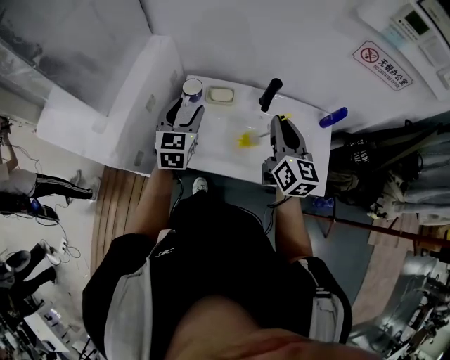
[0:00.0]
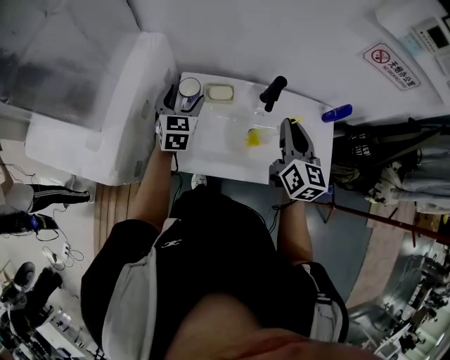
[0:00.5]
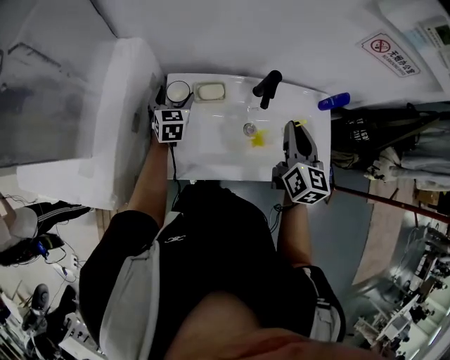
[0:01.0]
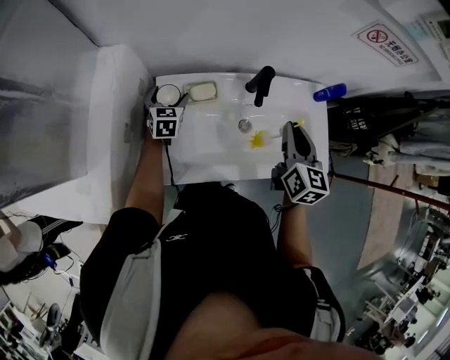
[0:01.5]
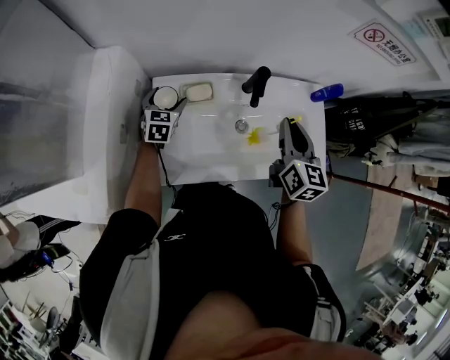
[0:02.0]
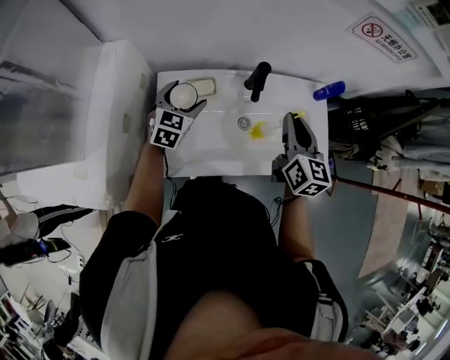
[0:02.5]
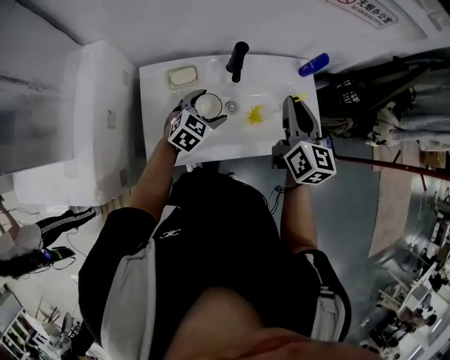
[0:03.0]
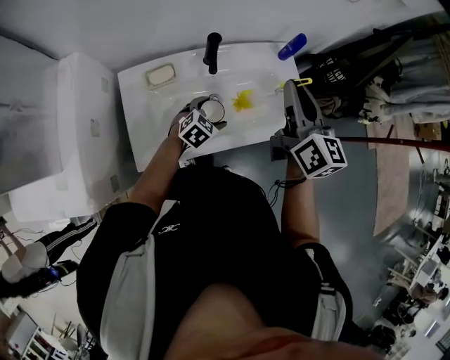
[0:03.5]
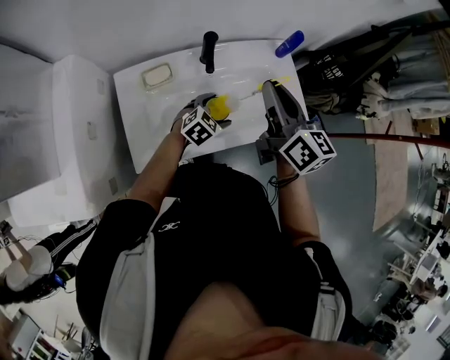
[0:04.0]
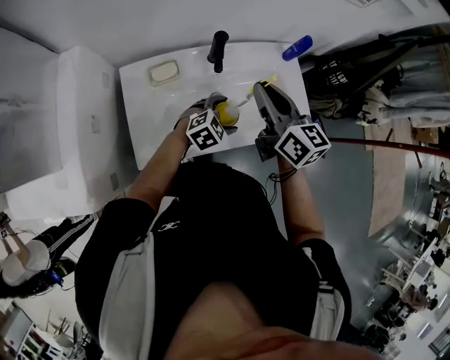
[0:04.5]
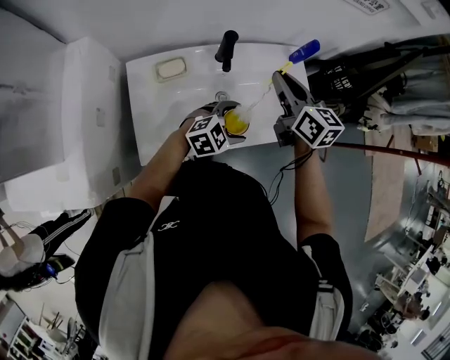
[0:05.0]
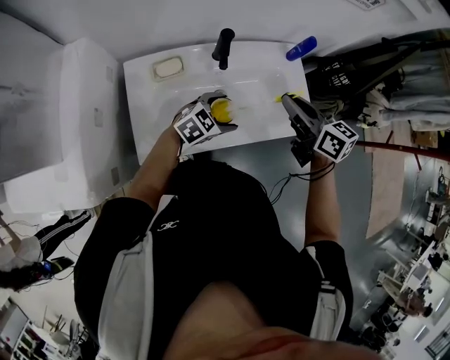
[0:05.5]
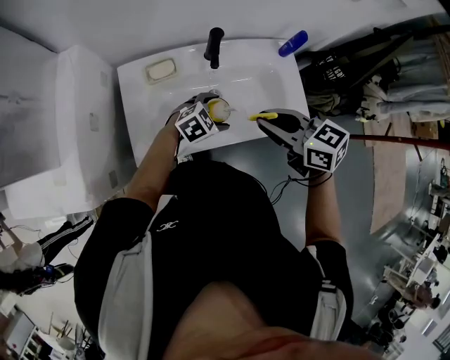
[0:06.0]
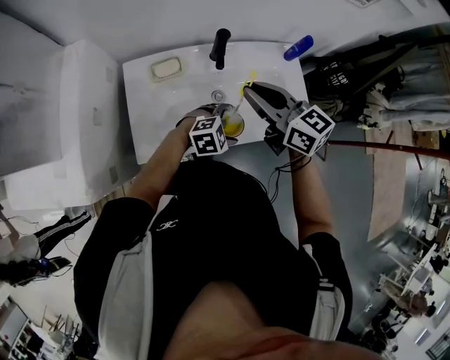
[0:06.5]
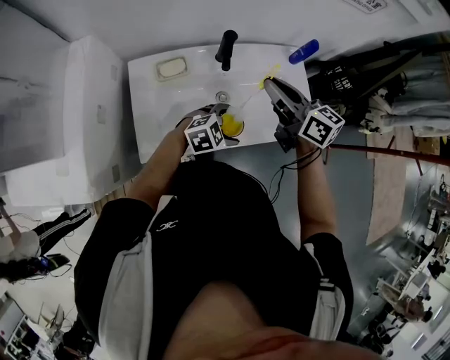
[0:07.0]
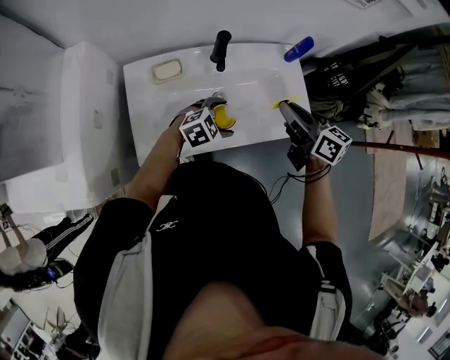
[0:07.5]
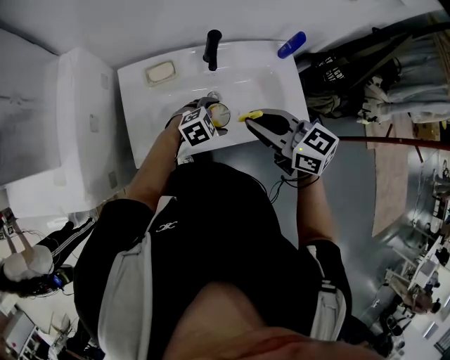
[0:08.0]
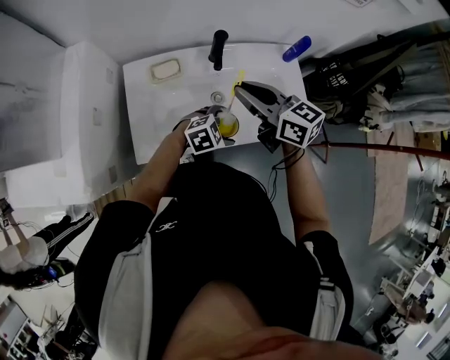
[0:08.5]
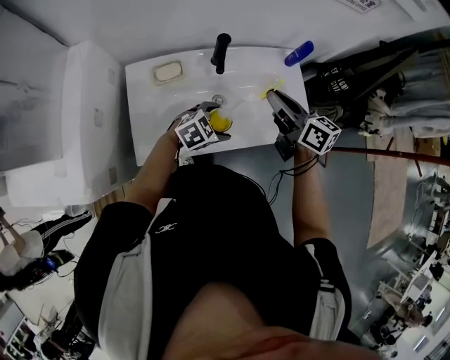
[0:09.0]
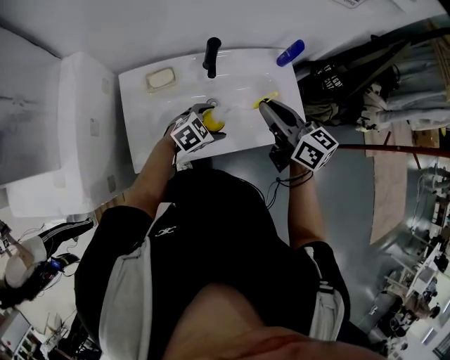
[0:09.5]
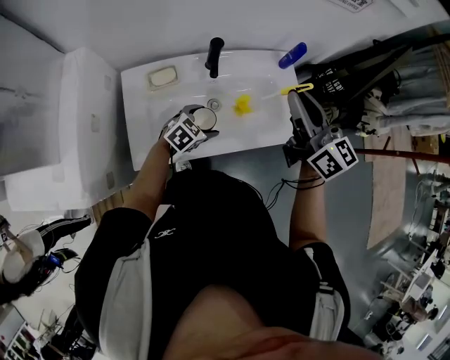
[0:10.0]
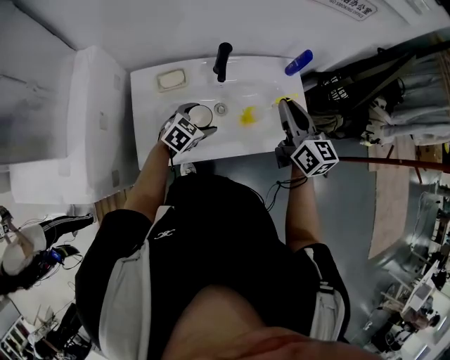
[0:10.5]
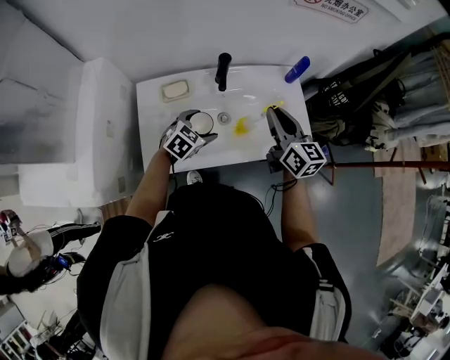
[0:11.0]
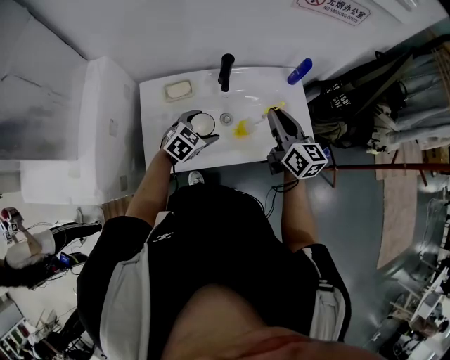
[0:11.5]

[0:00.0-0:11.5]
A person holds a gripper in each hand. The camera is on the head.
0:00.0 to 0:02.0: The right gripper goes some 5 cm downward, and turns by roughly 20 degrees. Meanwhile the left gripper is displaced downward and forward by roughly 25 cm, turns by some 20 degrees, and opens up.
0:02.0 to 0:04.0: The right gripper shifts about 10 cm upward and to the right, and changes its angle by roughly 20 degrees. The left gripper goes approximately 35 cm to the right, and swivels approximately 50 degrees.
0:04.0 to 0:06.0: The right gripper changes place by approximately 10 cm, and turns by about 50 degrees.
0:06.0 to 0:07.5: The right gripper moves about 10 cm, and swivels some 30 degrees.
0:09.5 to 0:11.5: The right gripper goes upward and returns, roughly 10 cm each way. The left gripper heads to the left, covering some 10 cm.

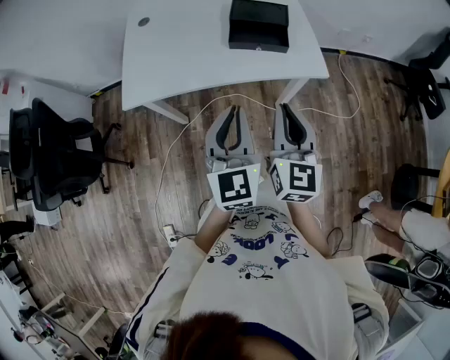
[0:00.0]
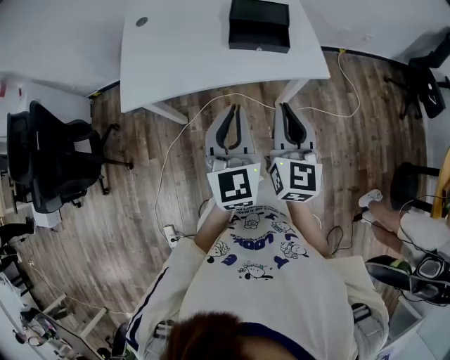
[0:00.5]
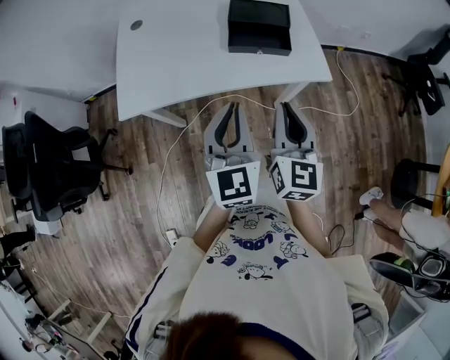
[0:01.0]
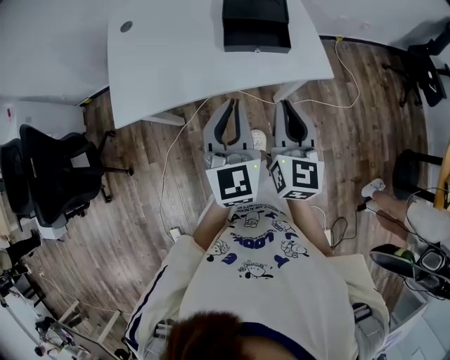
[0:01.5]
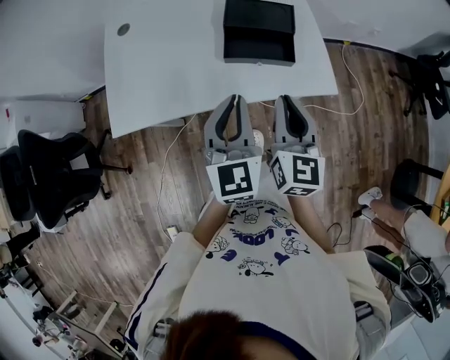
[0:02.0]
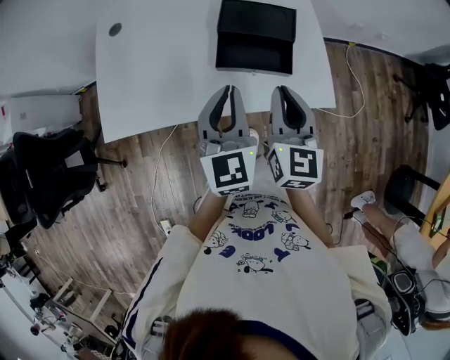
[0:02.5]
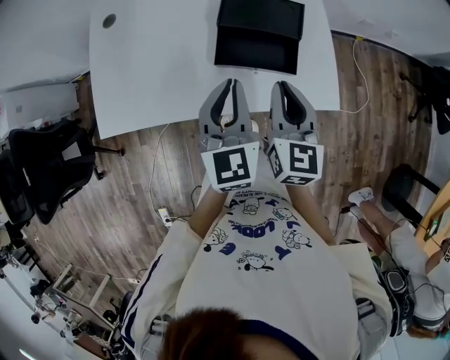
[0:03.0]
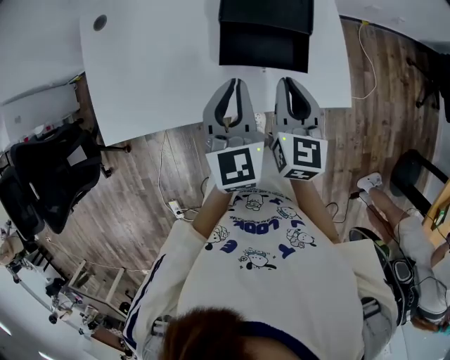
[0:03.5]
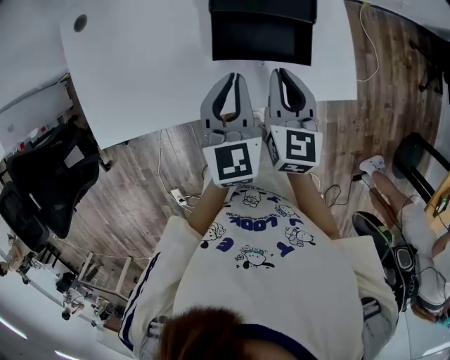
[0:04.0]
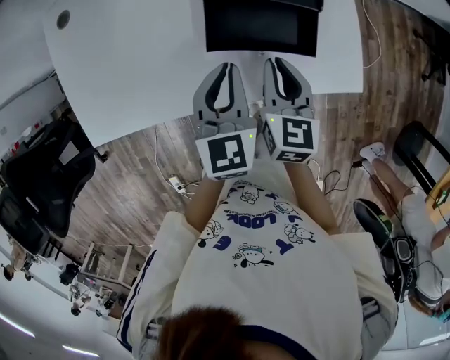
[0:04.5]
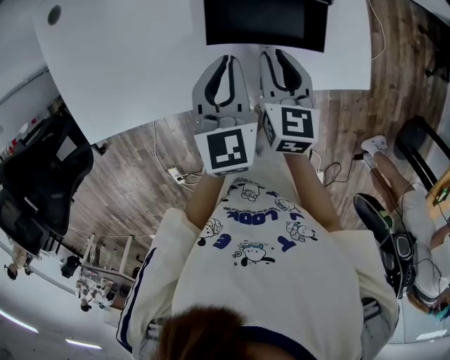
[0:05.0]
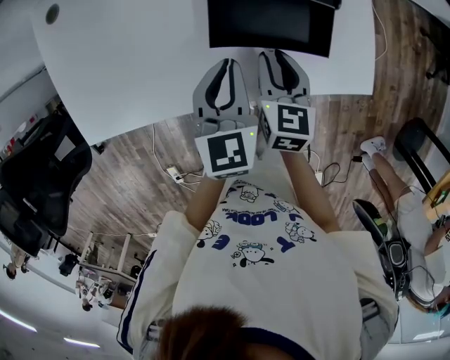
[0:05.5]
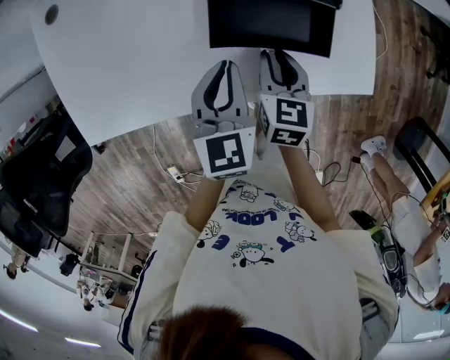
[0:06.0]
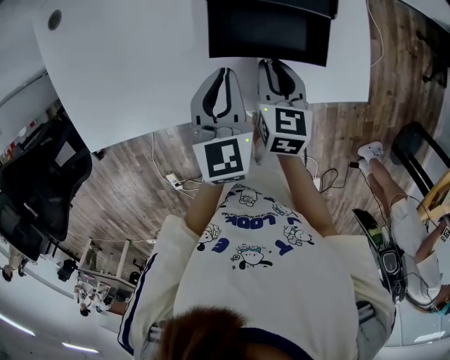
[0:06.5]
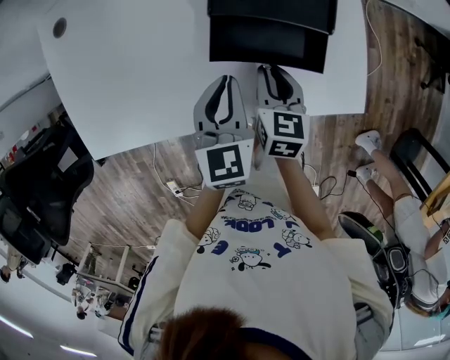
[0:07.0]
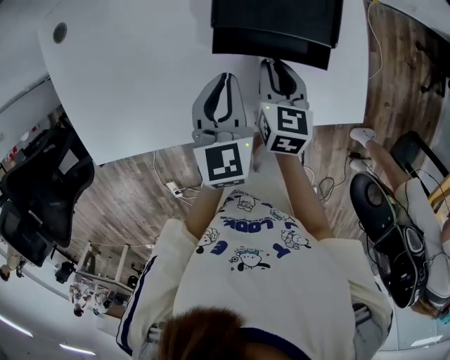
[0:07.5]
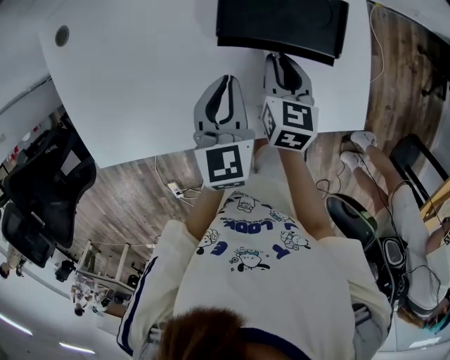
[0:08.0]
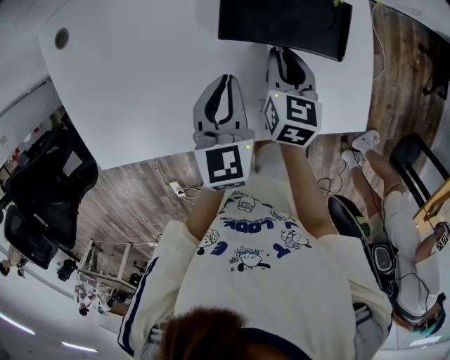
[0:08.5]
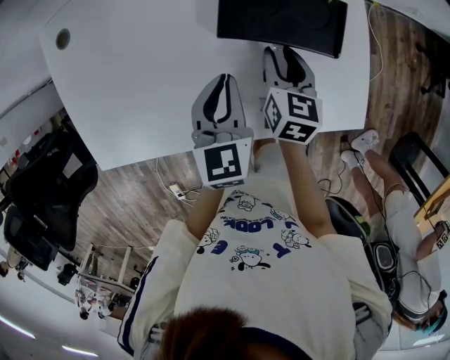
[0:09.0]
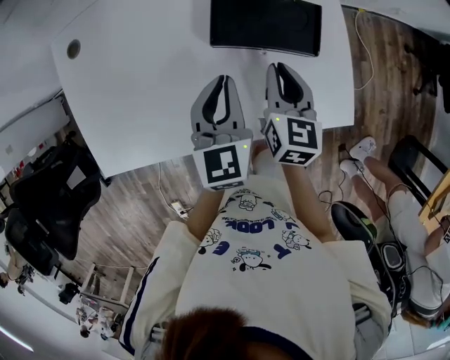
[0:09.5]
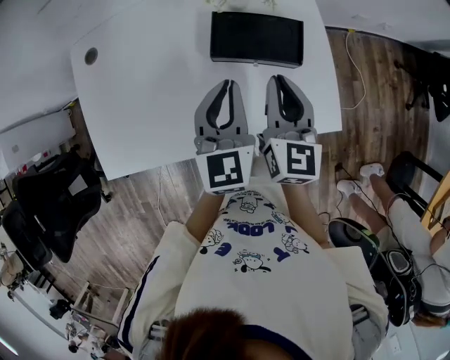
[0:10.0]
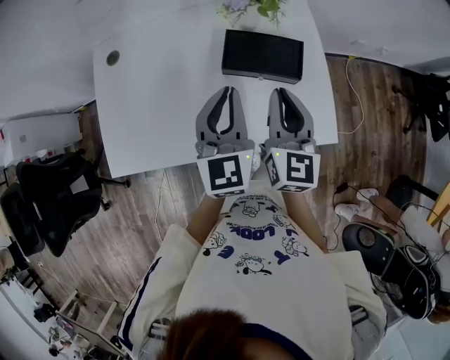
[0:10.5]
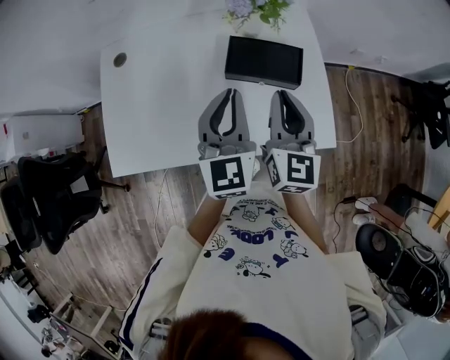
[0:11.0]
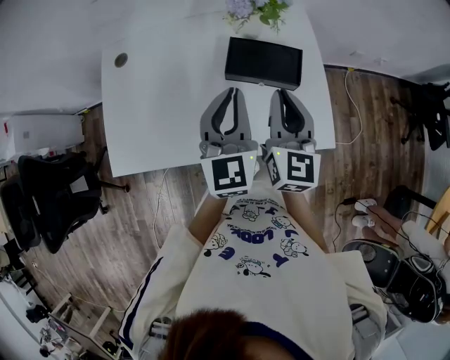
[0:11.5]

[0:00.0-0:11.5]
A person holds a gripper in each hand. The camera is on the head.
0:00.0 to 0:02.0: The grippers both shift forward by roughly 15 cm.
0:02.0 to 0:04.0: Both grippers move forward and downward, approximately 20 cm.
0:04.0 to 0:06.0: The left gripper heads downward, covering roughly 5 cm; the right gripper heads downward, covering some 10 cm.
0:06.0 to 0:07.5: The grippers both shift forward by some 5 cm.
0:07.5 to 0:09.5: The left gripper shifts by some 5 cm. Meanwhile the right gripper moves upward, some 10 cm.
0:09.5 to 0:11.5: Both grippers move upward, approximately 15 cm. The left gripper rotates about 20 degrees. Meanwhile the right gripper turns by roughly 20 degrees.

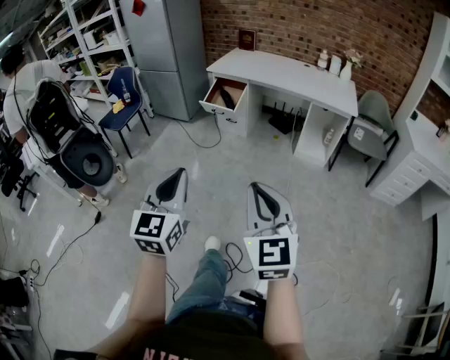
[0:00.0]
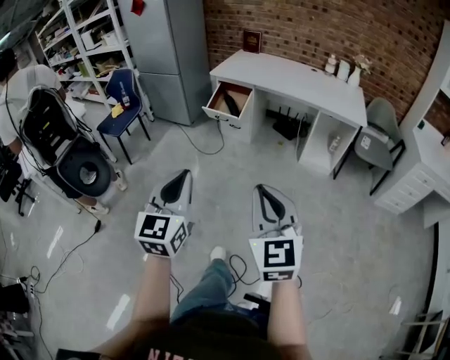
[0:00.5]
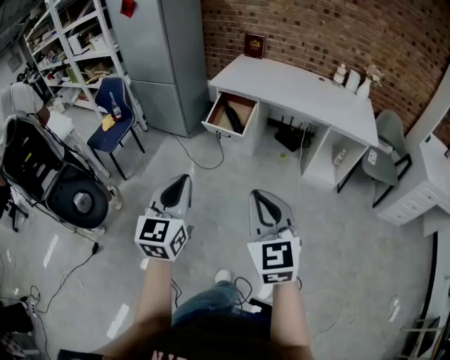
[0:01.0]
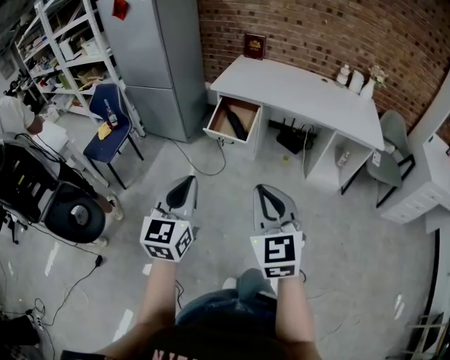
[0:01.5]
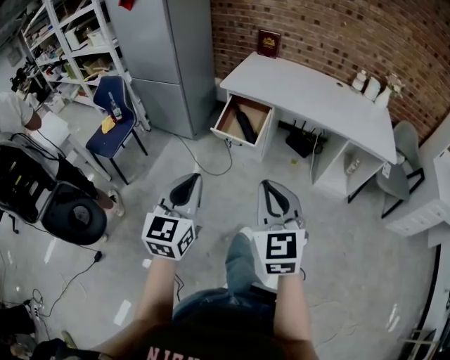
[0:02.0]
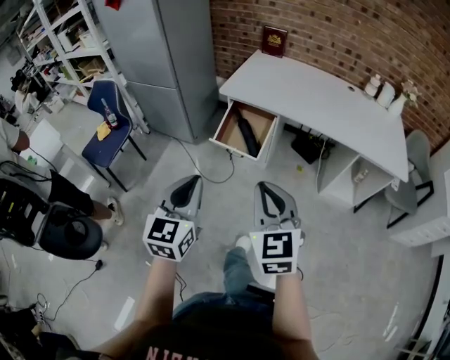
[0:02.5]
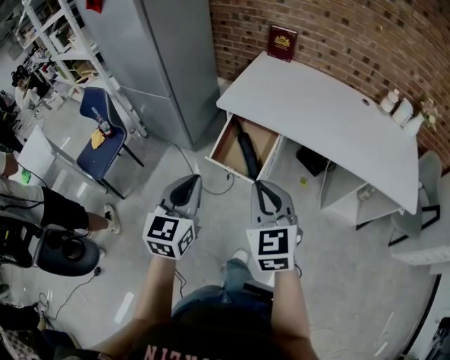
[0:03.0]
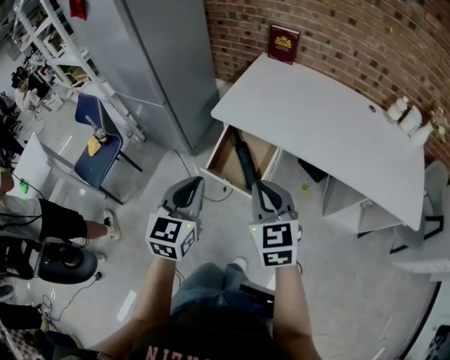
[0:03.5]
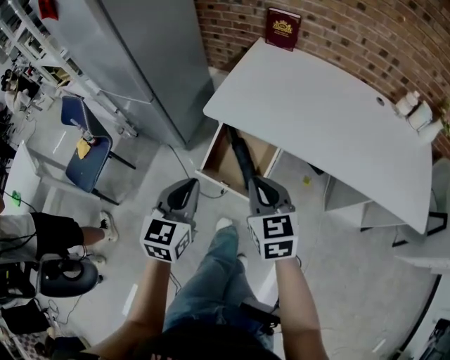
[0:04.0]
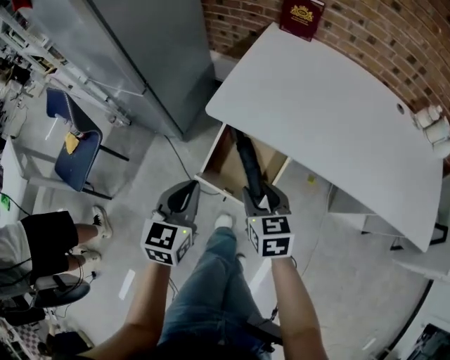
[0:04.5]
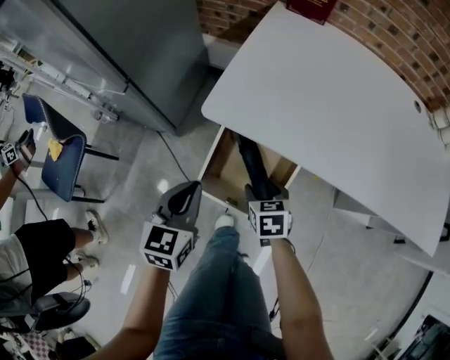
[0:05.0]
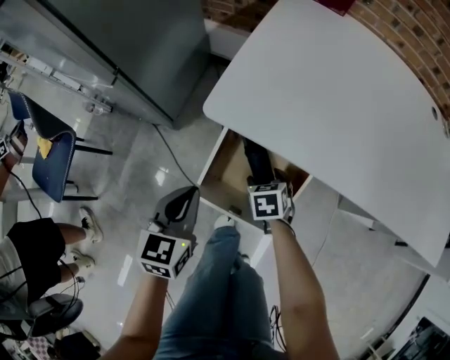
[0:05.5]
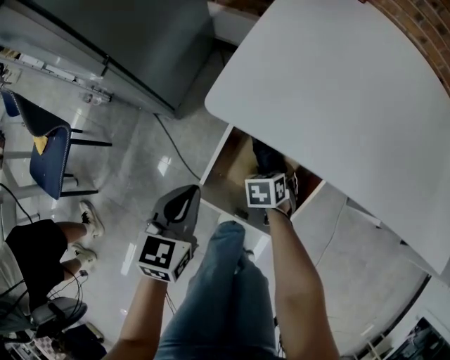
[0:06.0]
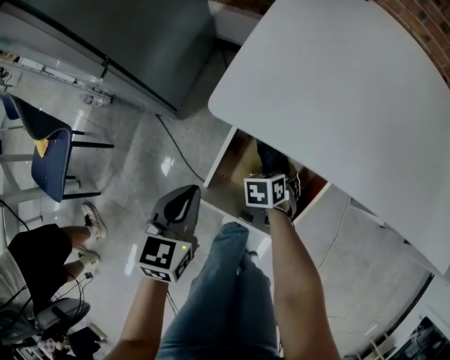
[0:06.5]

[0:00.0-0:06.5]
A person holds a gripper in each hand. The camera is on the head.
0:00.0 to 0:02.0: Both grippers are carried forward, about 50 cm.
0:02.0 to 0:04.5: The pair of grippers is taken forward, about 60 cm. The right gripper shifts about 25 cm downward, swivels some 30 degrees, and opens up; the left gripper turns by about 20 degrees.
0:04.5 to 0:06.5: The left gripper goes about 20 cm downward; the right gripper moves downward, some 35 cm, tips its fingers downward by some 30 degrees, and opens its fingers.
